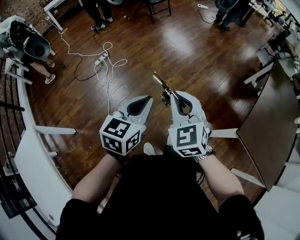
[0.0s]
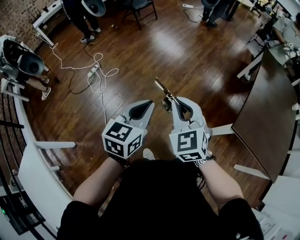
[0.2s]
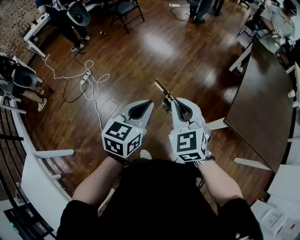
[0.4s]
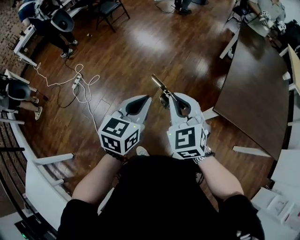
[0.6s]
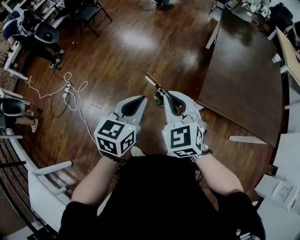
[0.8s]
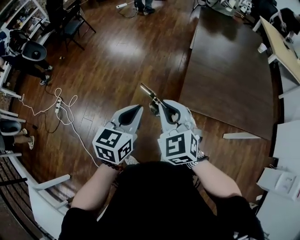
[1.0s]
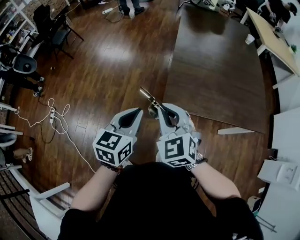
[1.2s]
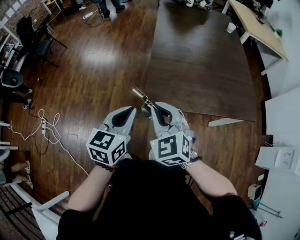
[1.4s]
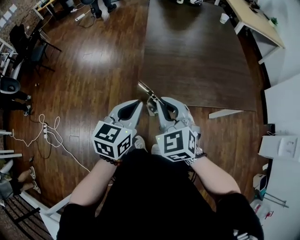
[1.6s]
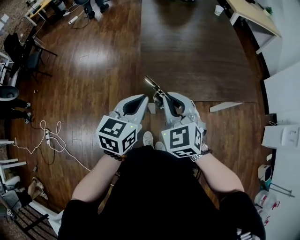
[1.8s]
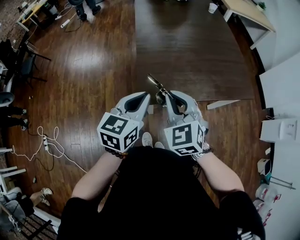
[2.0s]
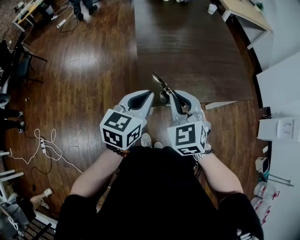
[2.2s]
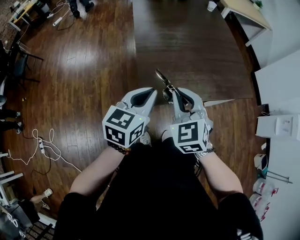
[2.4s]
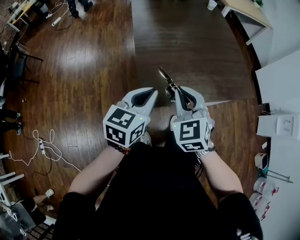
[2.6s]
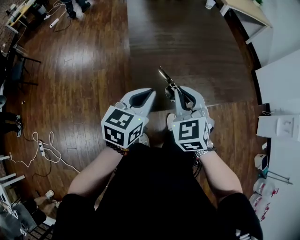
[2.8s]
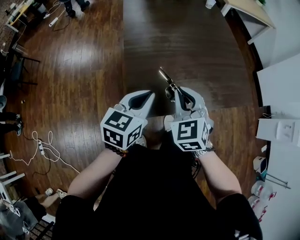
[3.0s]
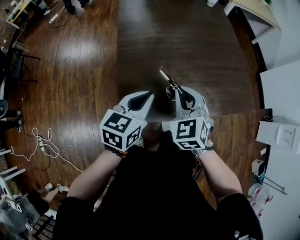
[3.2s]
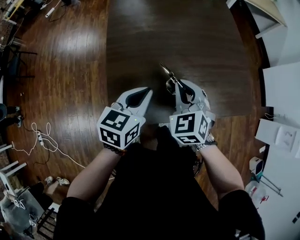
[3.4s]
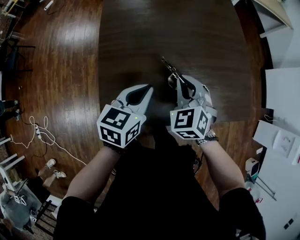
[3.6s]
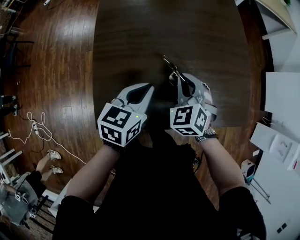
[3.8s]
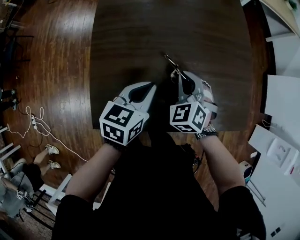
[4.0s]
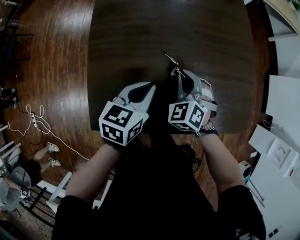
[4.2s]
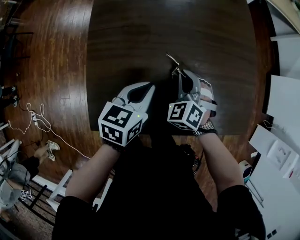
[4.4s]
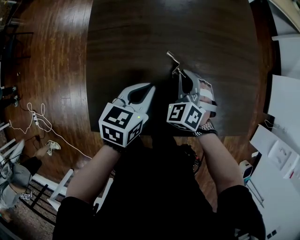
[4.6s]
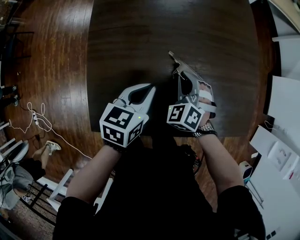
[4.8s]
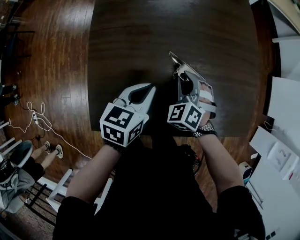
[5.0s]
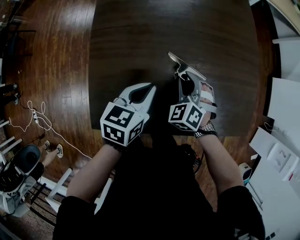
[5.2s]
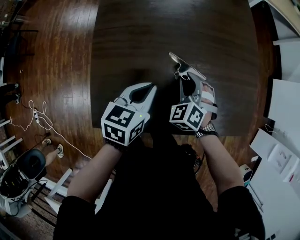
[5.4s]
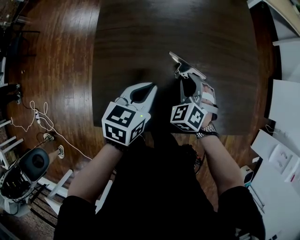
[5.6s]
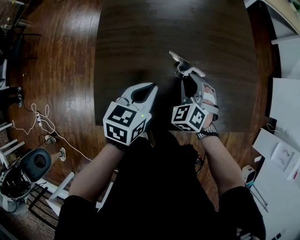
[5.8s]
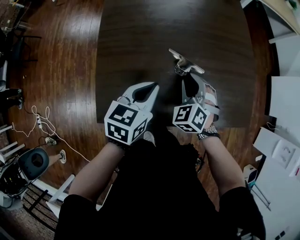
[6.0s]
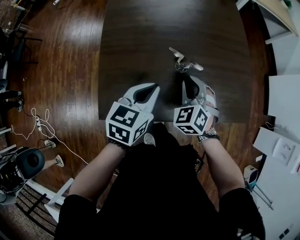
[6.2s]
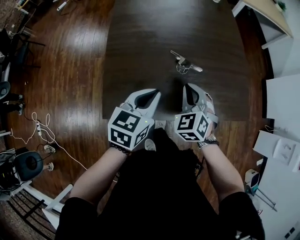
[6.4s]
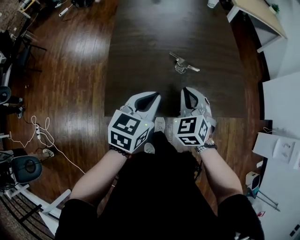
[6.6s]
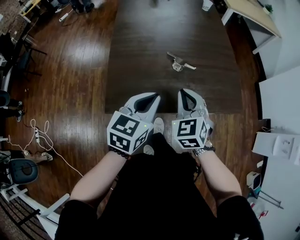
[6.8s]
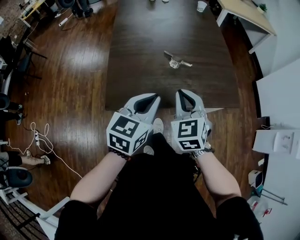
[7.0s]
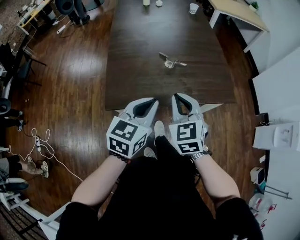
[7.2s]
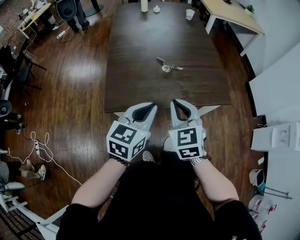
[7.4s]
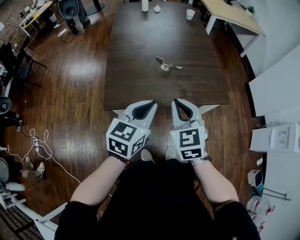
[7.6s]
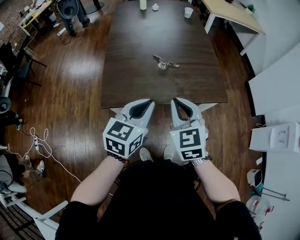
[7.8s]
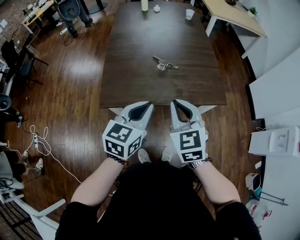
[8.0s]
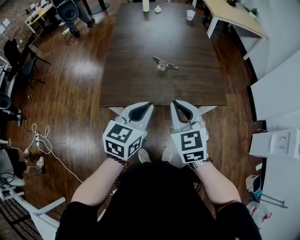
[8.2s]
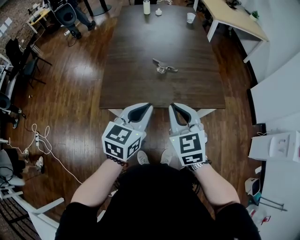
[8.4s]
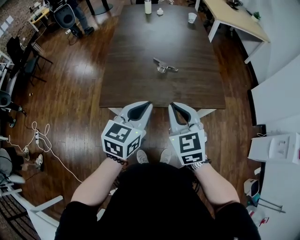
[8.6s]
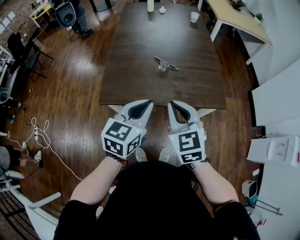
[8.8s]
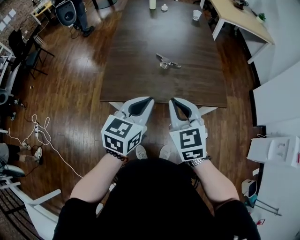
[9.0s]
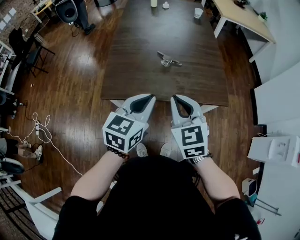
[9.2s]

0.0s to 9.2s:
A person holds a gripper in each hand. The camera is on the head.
0.0s to 1.6s: The pair of grippers is taken some 60 cm. The right gripper rotates about 40 degrees. The left gripper rotates about 40 degrees.
1.6s to 3.0s: The left gripper moves forward, roughly 15 cm. The right gripper heads forward and to the right, covering about 20 cm.
3.0s to 4.6s: Both grippers move forward, downward and to the right, some 25 cm. The right gripper rotates about 30 degrees.
4.6s to 6.2s: The right gripper is displaced backward by approximately 5 cm. The left gripper is displaced backward and upward by roughly 10 cm.
6.2s to 7.6s: Both grippers travel together backward and upward, roughly 25 cm. The right gripper changes its angle by about 30 degrees.
7.6s to 9.2s: The grippers make only small movements.

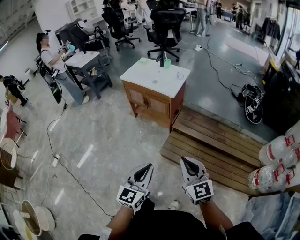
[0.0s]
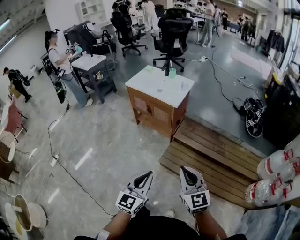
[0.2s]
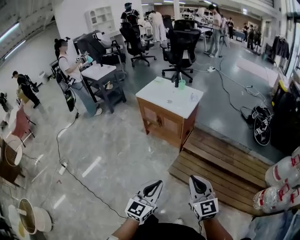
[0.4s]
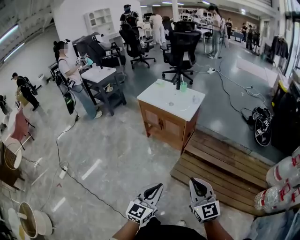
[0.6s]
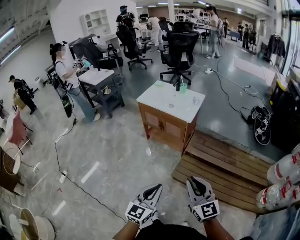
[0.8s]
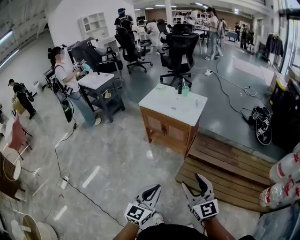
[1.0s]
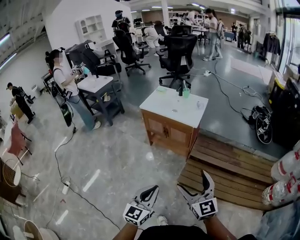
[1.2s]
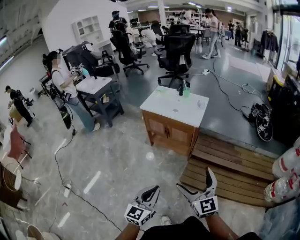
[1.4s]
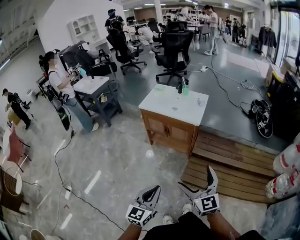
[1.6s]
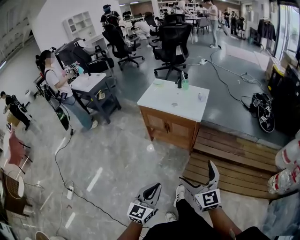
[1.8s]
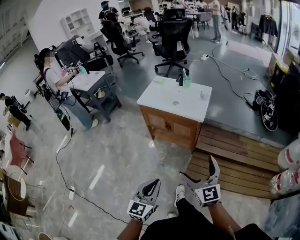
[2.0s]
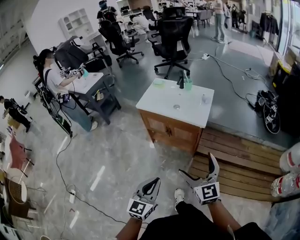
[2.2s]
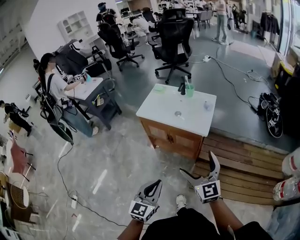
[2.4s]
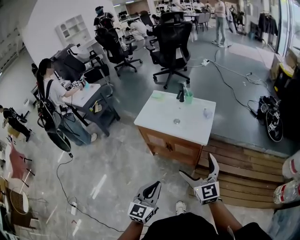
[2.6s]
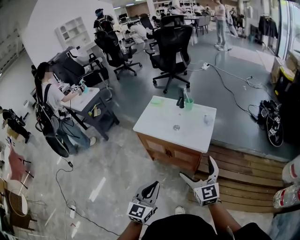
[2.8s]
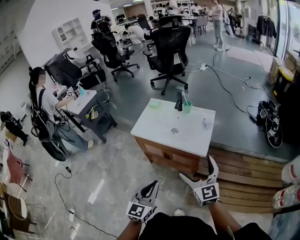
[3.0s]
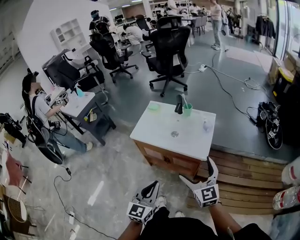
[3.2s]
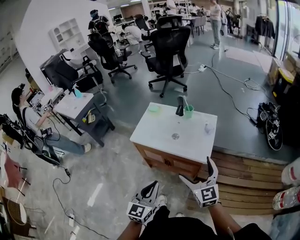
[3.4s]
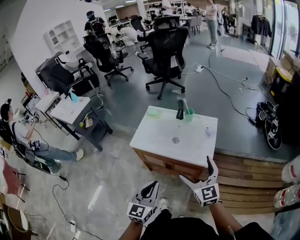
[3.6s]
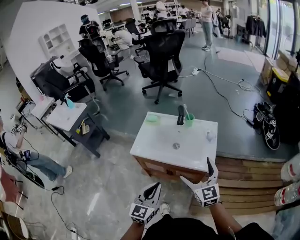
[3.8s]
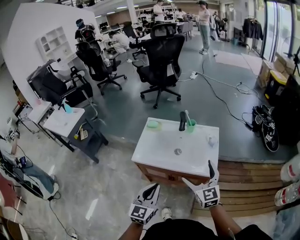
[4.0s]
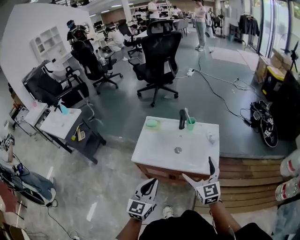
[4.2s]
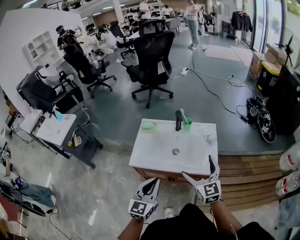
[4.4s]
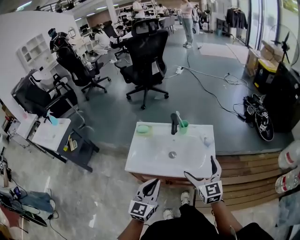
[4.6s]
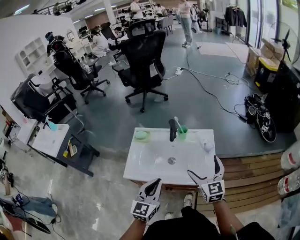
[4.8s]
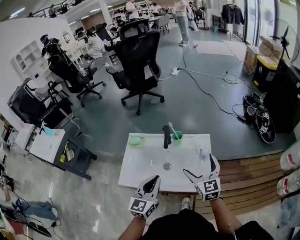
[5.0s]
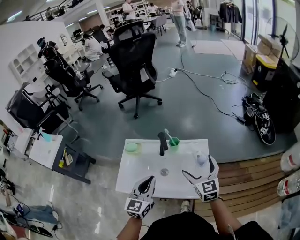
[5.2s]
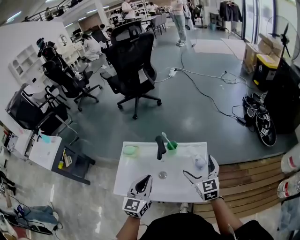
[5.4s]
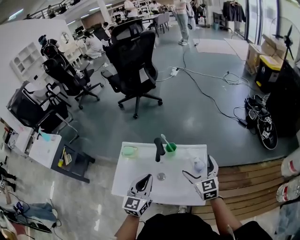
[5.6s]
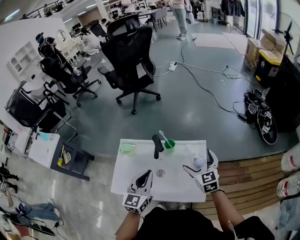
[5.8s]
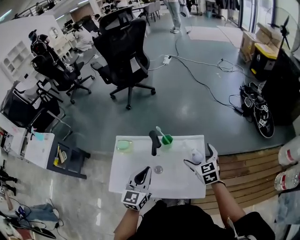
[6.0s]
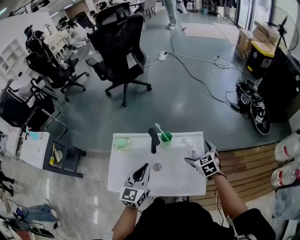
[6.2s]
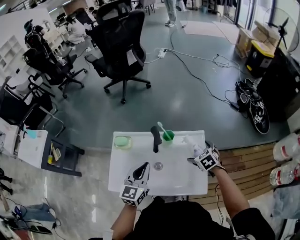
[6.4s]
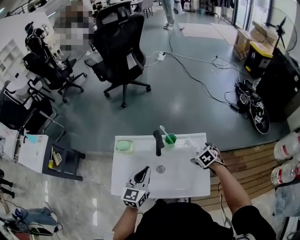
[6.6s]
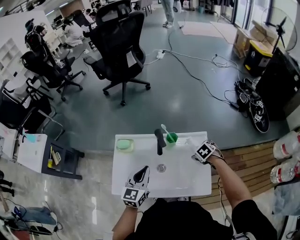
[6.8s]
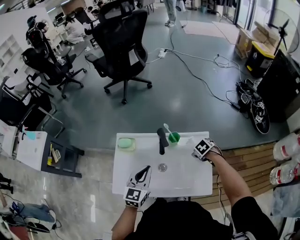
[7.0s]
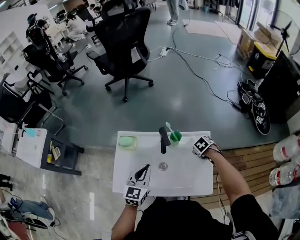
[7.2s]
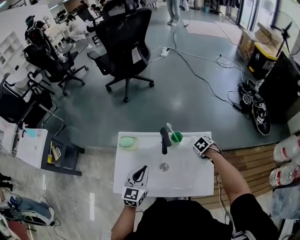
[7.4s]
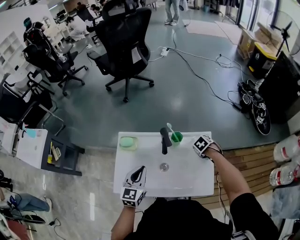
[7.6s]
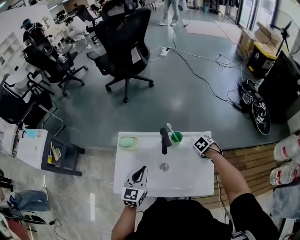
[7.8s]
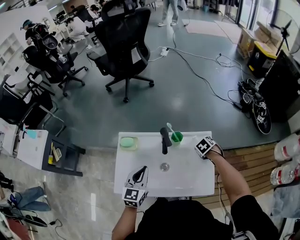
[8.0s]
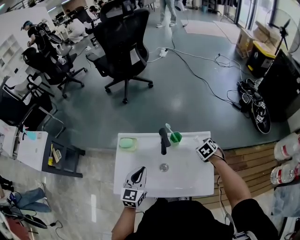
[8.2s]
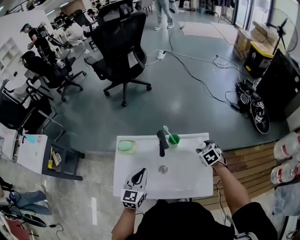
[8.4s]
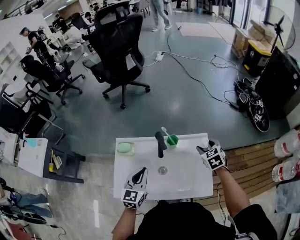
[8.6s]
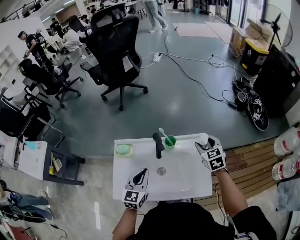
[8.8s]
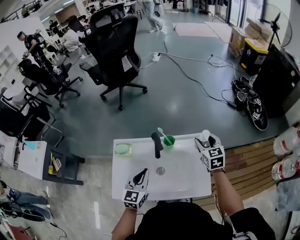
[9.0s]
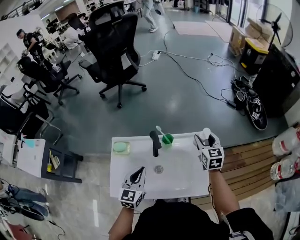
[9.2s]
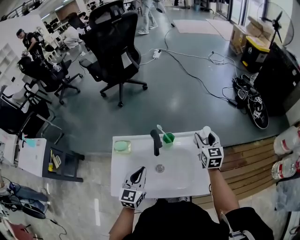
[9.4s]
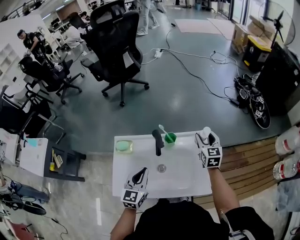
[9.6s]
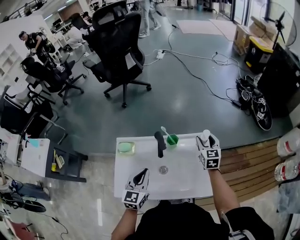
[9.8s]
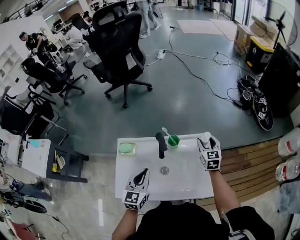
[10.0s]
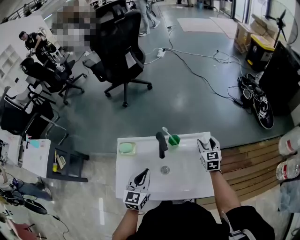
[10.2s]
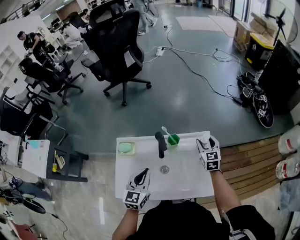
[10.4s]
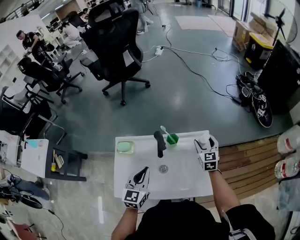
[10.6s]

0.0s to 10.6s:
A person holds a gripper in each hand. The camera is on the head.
0.0s to 1.6s: The left gripper goes approximately 25 cm to the left. The right gripper is displaced to the left and forward by about 25 cm, and opens its fingers.
1.6s to 3.0s: The pair of grippers is taken forward, approximately 40 cm.
3.0s to 4.6s: Both grippers travel together forward, some 30 cm.
4.6s to 6.0s: The right gripper travels forward and to the right by roughly 30 cm, and changes its angle by roughly 20 degrees. Meanwhile the left gripper shifts some 30 cm forward.
6.0s to 7.6s: The left gripper moves approximately 15 cm, while the right gripper heads downward, covering about 15 cm, angles its fingers downward, by roughly 50 degrees, and closes up.
7.6s to 9.0s: The left gripper shifts by approximately 5 cm, while the right gripper shifts approximately 20 cm upward, and tilts its fingers roughly 50 degrees upward.
9.0s to 10.6s: The right gripper is displaced downward by some 10 cm.

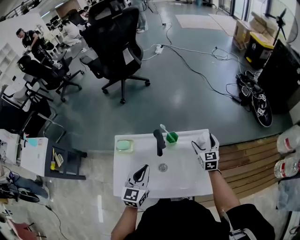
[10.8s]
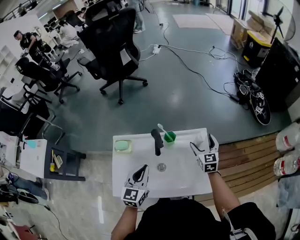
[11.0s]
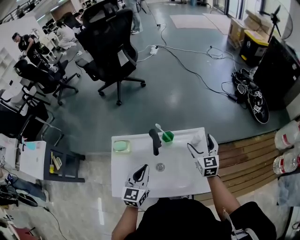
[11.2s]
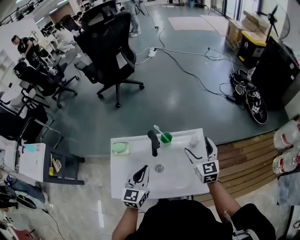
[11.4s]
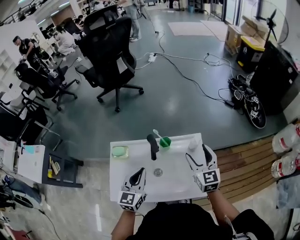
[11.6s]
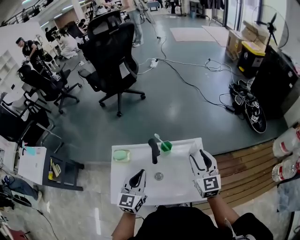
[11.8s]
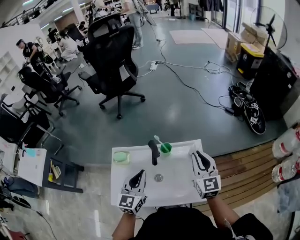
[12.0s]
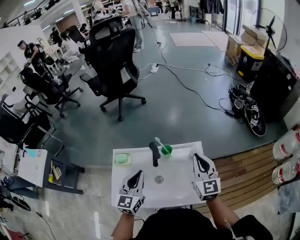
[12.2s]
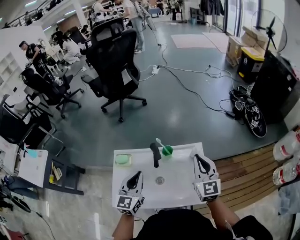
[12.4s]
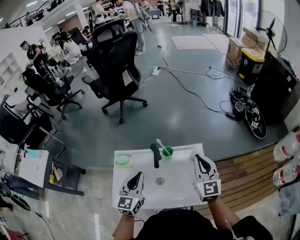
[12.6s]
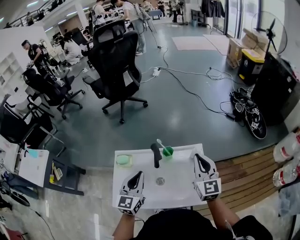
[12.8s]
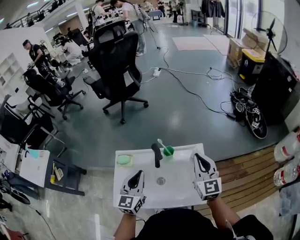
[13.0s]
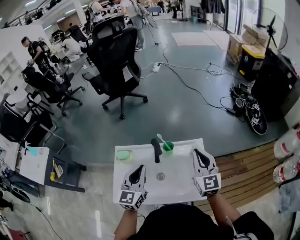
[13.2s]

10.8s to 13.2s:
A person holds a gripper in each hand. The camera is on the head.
10.8s to 12.0s: The left gripper heads upward, covering approximately 5 cm. The right gripper shifts roughly 20 cm upward and backward, and closes up.
12.0s to 13.2s: The grippers move only a little.

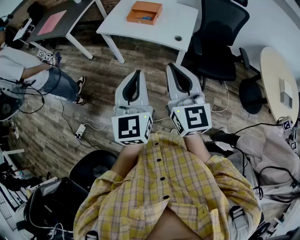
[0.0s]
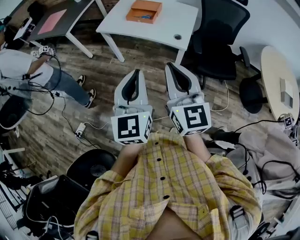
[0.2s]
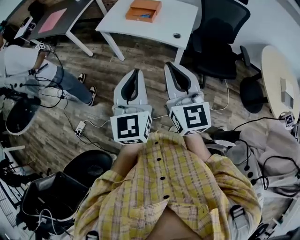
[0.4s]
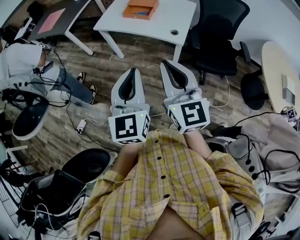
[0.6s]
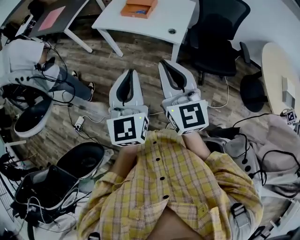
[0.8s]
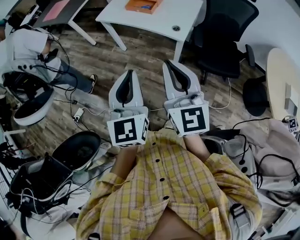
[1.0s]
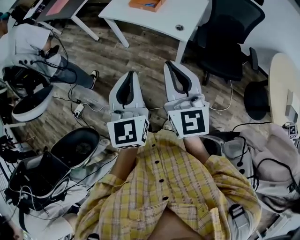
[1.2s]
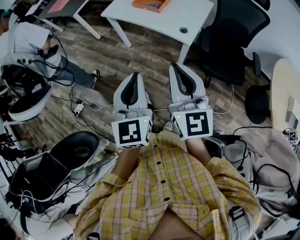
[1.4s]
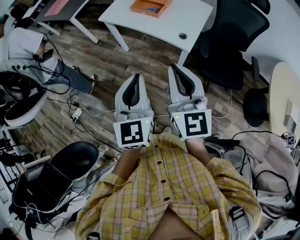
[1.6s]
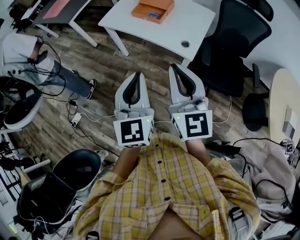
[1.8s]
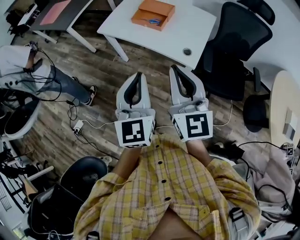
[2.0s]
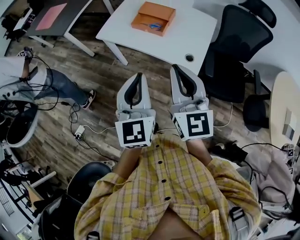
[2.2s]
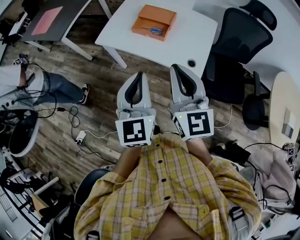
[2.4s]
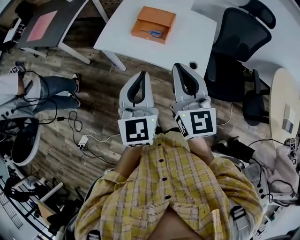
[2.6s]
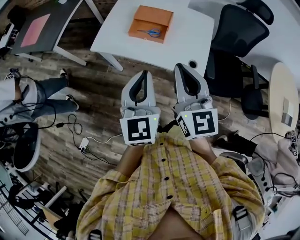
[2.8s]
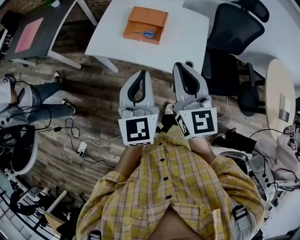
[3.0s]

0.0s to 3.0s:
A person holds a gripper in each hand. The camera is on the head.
0.0s to 1.6s: The left gripper moves to the right and downward, about 10 cm. Meanwhile the right gripper moves to the right and forward, about 10 cm.
1.6s to 3.0s: The two grippers go about 30 cm forward.
